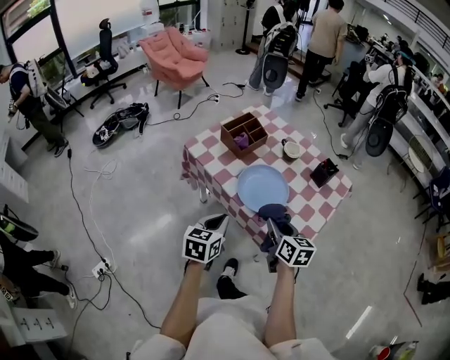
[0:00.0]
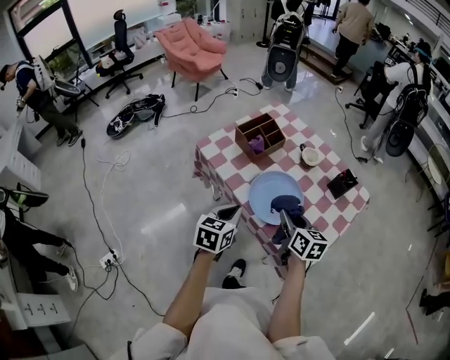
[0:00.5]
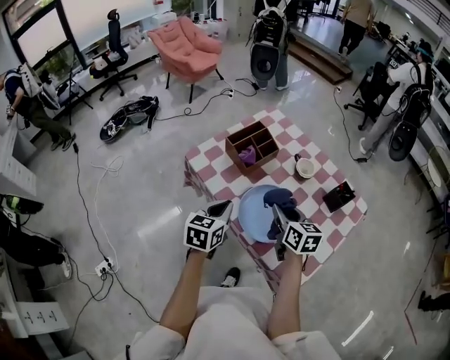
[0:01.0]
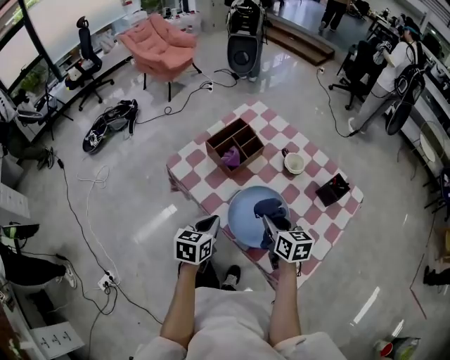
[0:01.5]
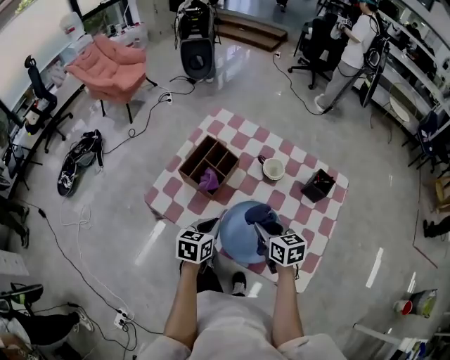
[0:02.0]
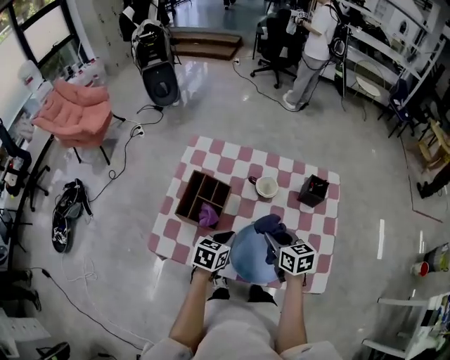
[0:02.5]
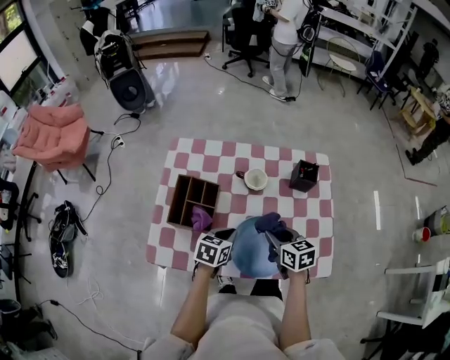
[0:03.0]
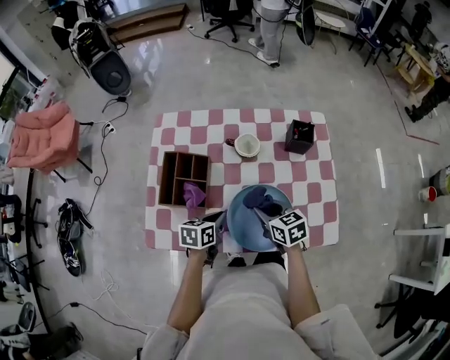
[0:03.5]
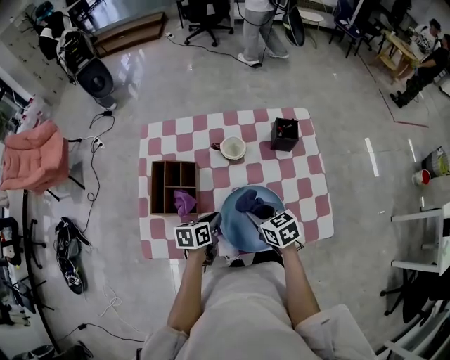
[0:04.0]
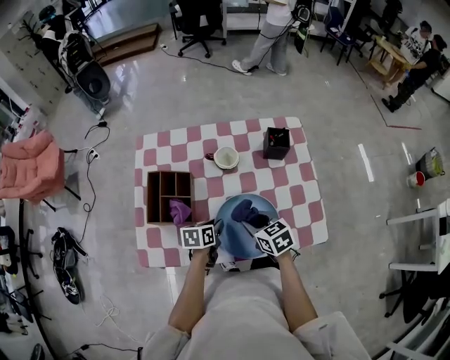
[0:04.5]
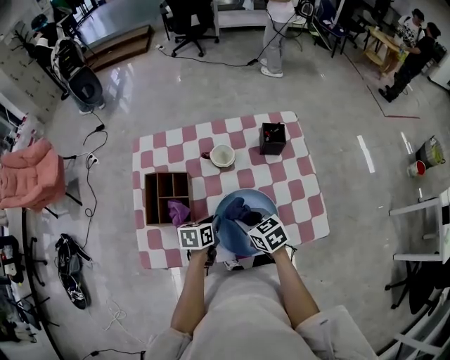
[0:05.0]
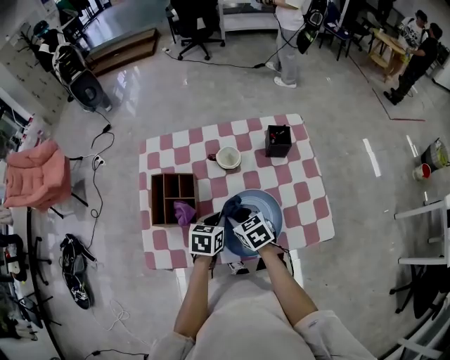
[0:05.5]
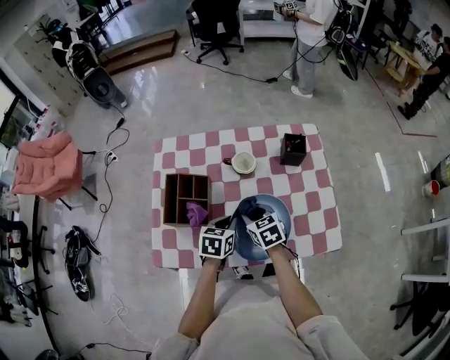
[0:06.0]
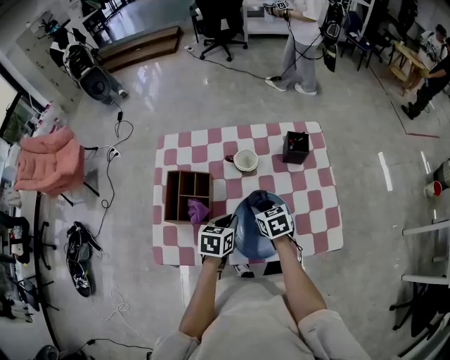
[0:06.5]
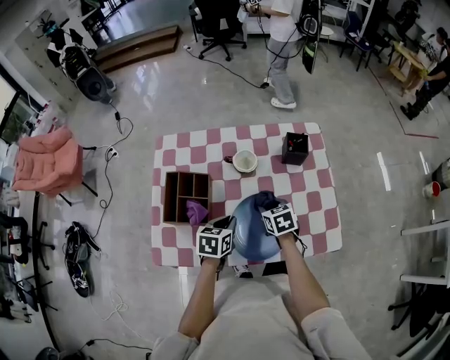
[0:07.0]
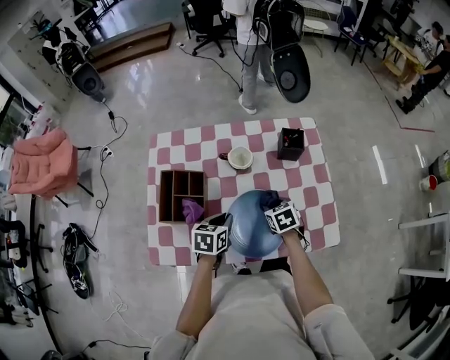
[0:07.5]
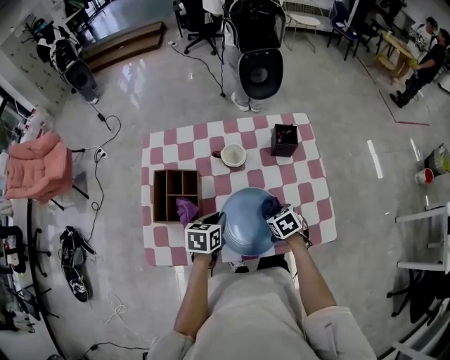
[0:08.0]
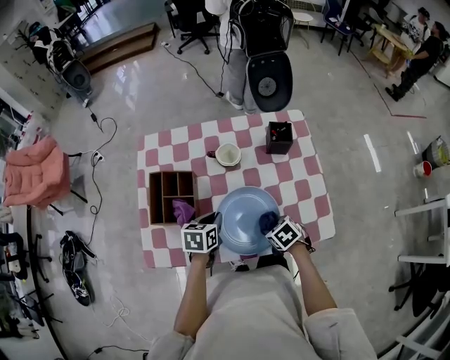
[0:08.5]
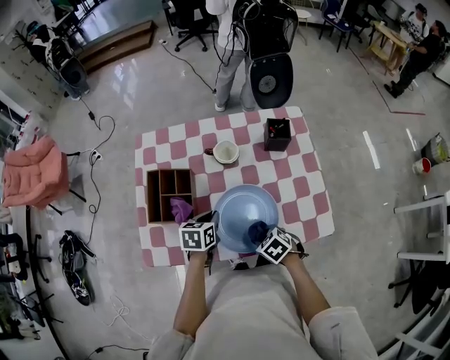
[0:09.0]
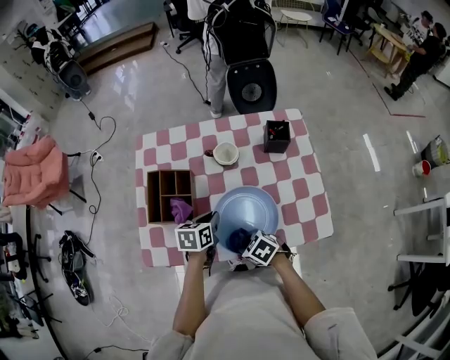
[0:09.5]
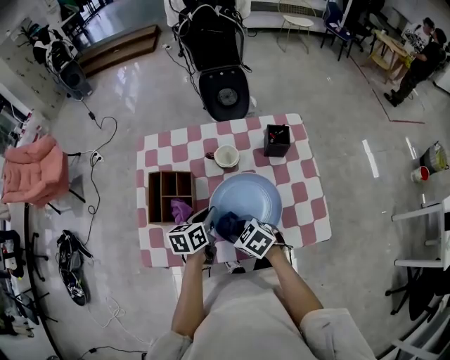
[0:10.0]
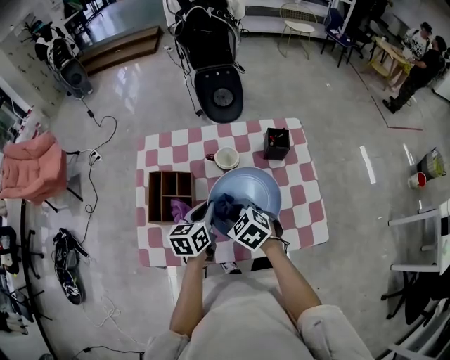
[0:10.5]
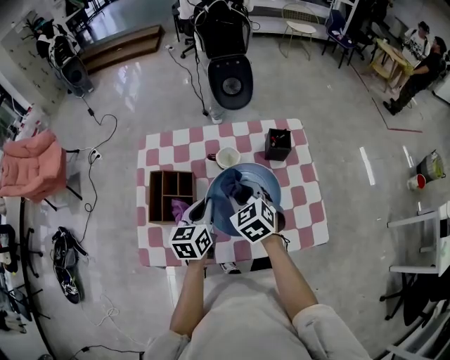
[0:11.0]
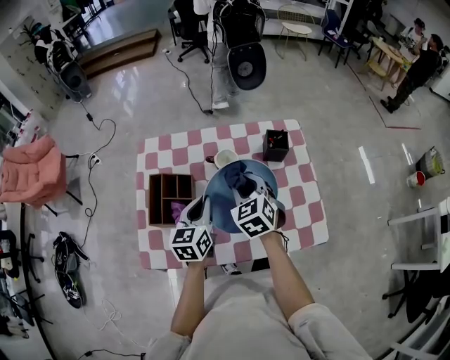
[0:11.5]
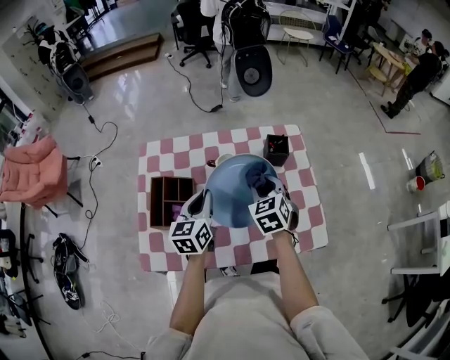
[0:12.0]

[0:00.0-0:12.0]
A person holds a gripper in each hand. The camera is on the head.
0:00.0 to 0:02.0: The grippers both shift forward by about 25 cm.
0:02.0 to 0:04.0: The right gripper is displaced downward by about 5 cm. Meanwhile the left gripper shifts approximately 10 cm downward, and rotates approximately 30 degrees.
0:04.0 to 0:06.0: The left gripper shifts by approximately 5 cm, and swivels about 20 degrees; the right gripper moves about 5 cm.
0:06.0 to 0:08.0: The right gripper moves to the right and downward, approximately 15 cm, and rotates roughly 20 degrees.
0:08.0 to 0:10.0: The right gripper travels to the left and upward by roughly 15 cm, and swivels about 30 degrees.
0:10.0 to 0:12.0: The left gripper goes some 10 cm upward, and changes its angle by roughly 30 degrees, while the right gripper moves forward, to the right and upward, about 20 cm, and rotates roughly 40 degrees.

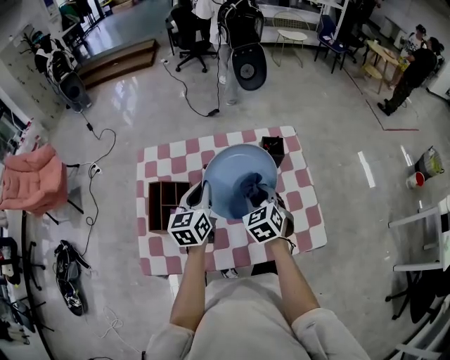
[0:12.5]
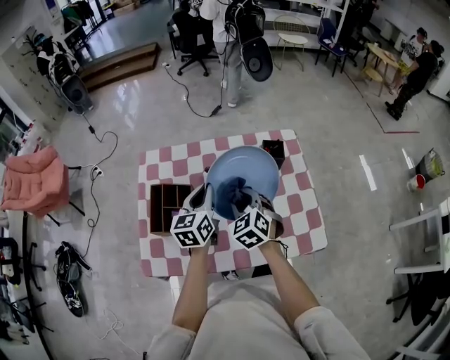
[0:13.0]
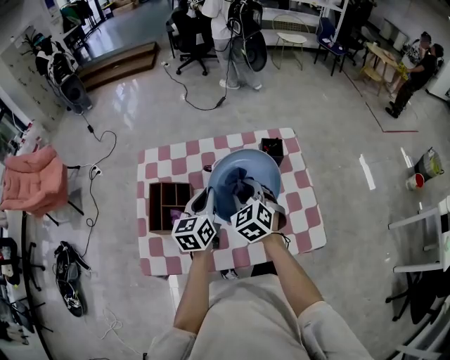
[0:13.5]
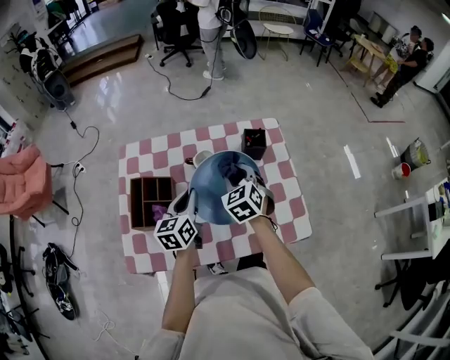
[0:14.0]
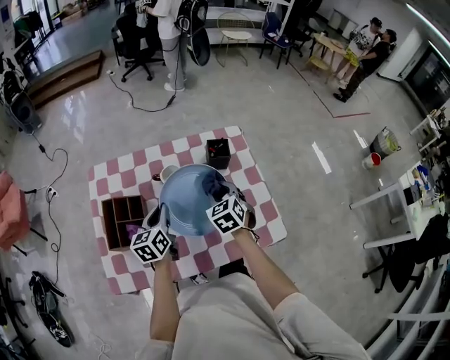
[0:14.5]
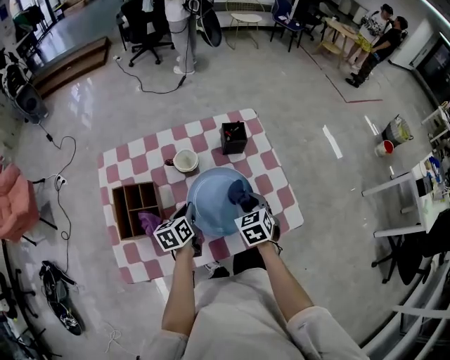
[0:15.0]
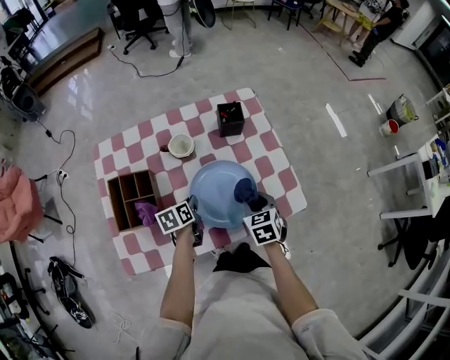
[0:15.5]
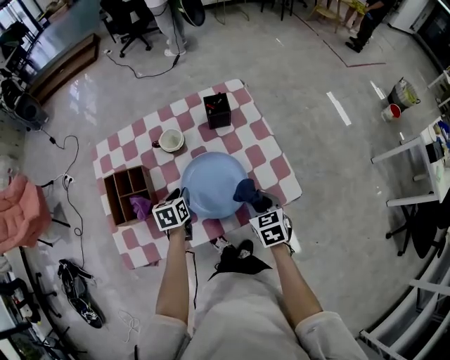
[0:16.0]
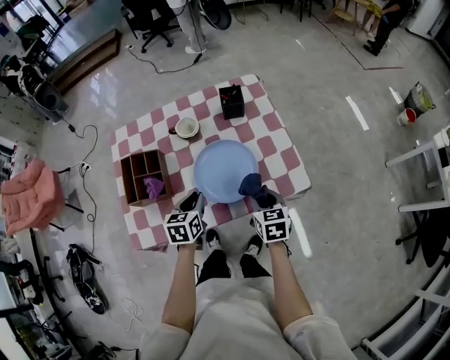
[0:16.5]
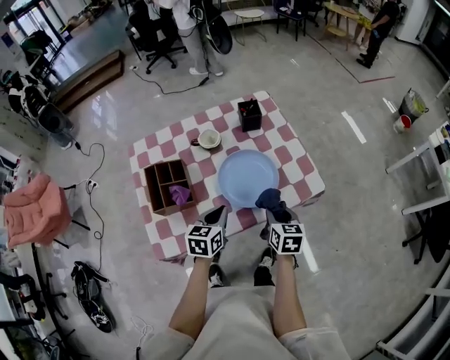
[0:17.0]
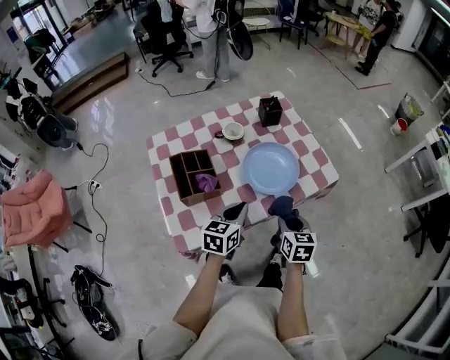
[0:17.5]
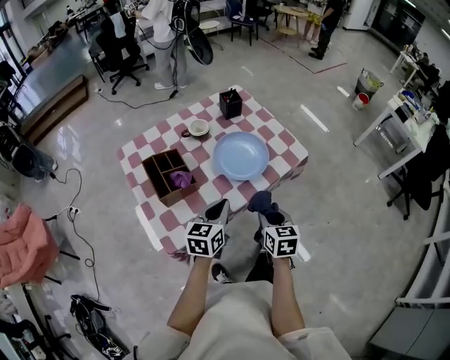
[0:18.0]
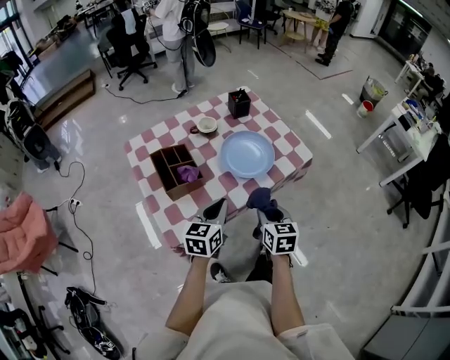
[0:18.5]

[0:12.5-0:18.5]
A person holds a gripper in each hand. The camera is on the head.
0:12.5 to 0:14.5: The left gripper moves downward, roughly 5 cm. Meanwhile the right gripper changes place by some 5 cm.
0:14.5 to 0:16.5: The right gripper is displaced backward and to the right by some 20 cm, and turns by about 30 degrees; the left gripper is displaced backward, to the right and downward by approximately 15 cm, and rotates about 30 degrees.
0:16.5 to 0:18.5: The right gripper changes place by about 25 cm, and rotates roughly 20 degrees. Meanwhile the left gripper changes place by approximately 20 cm, and rotates some 30 degrees.

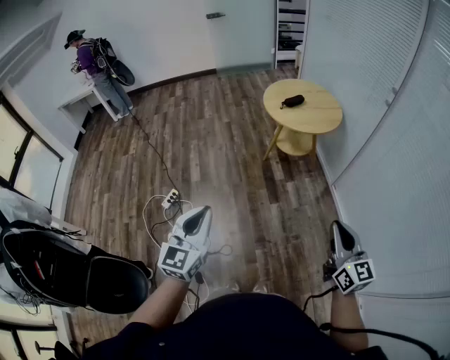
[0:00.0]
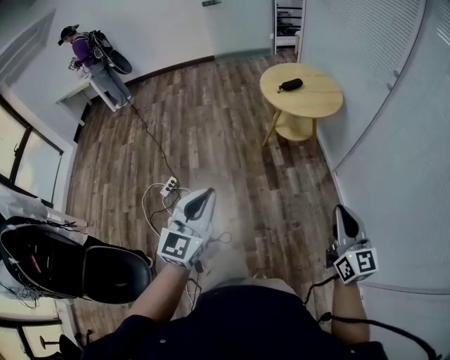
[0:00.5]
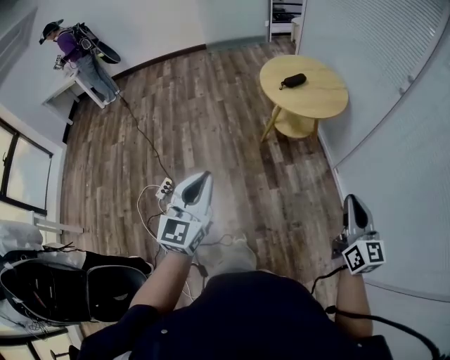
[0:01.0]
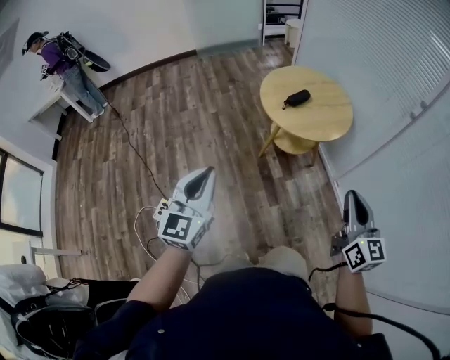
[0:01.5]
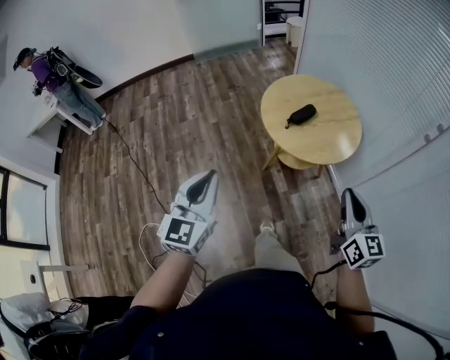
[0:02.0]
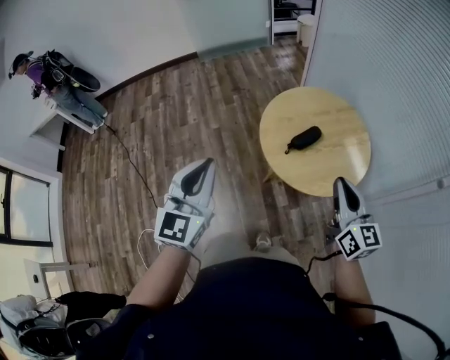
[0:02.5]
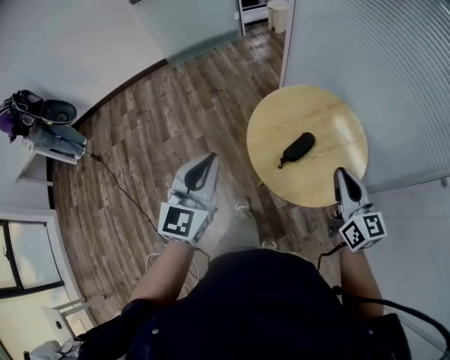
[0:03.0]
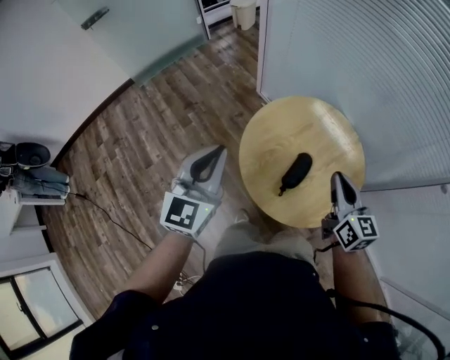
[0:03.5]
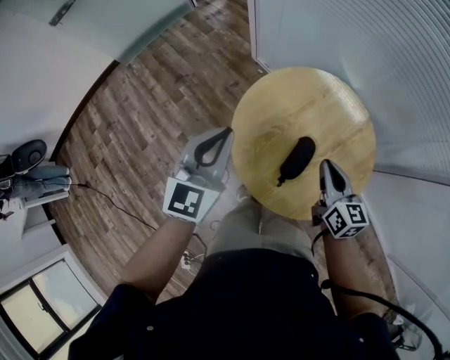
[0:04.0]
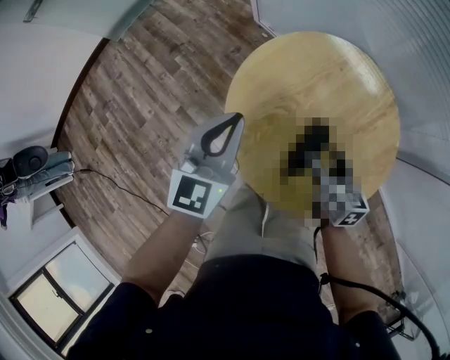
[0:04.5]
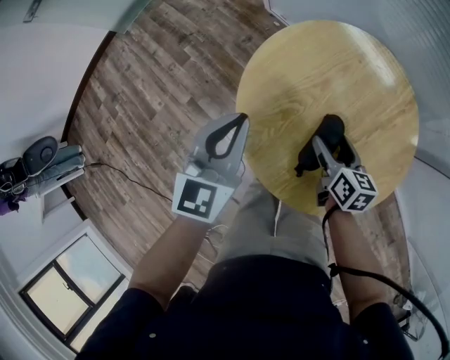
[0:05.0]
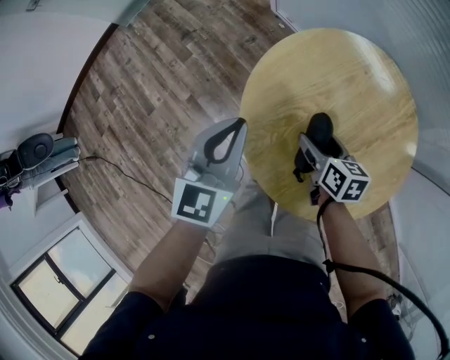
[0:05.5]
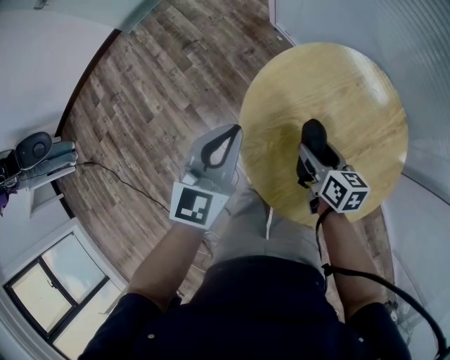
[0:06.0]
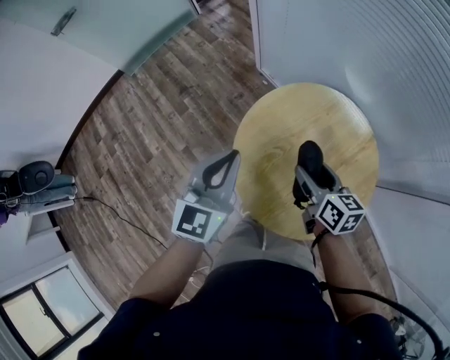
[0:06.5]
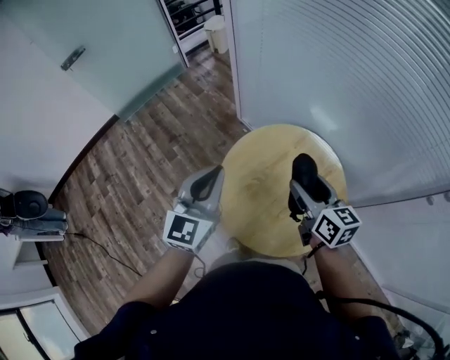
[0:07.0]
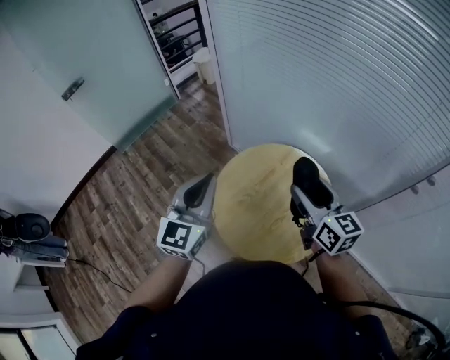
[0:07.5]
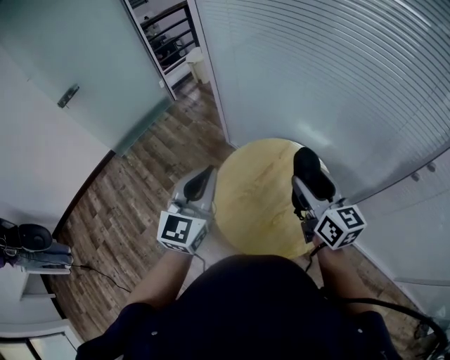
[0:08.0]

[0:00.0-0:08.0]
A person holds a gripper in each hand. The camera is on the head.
0:00.0 to 0:02.0: The pair of grippers is taken forward, about 50 cm.
0:02.0 to 0:04.0: The pair of grippers is taken approximately 60 cm. The right gripper turns by some 30 degrees, while the left gripper rotates roughly 30 degrees.
0:04.0 to 0:06.0: The left gripper heads downward, covering approximately 10 cm. Meanwhile the right gripper goes about 20 cm downward, to the left and forward, turns by roughly 30 degrees, and opens up.
0:06.0 to 0:08.0: Both grippers travel together upward, approximately 35 cm. The right gripper rotates some 40 degrees; the left gripper swivels some 20 degrees.
